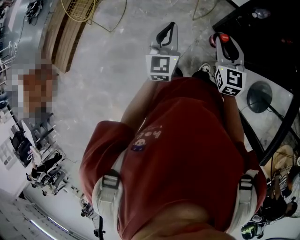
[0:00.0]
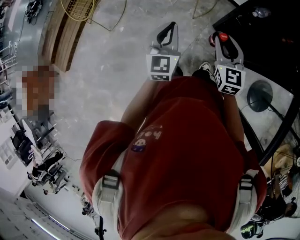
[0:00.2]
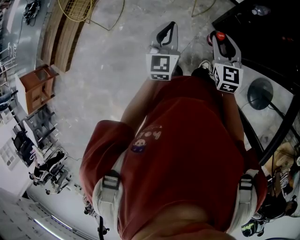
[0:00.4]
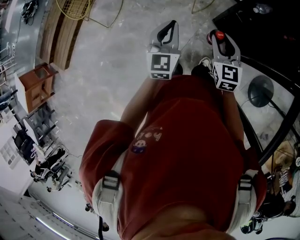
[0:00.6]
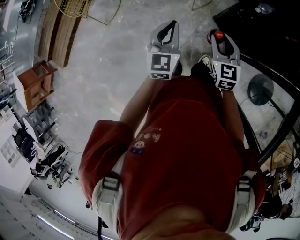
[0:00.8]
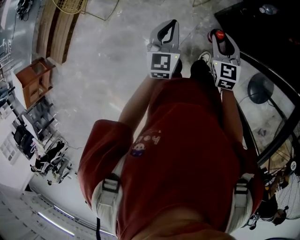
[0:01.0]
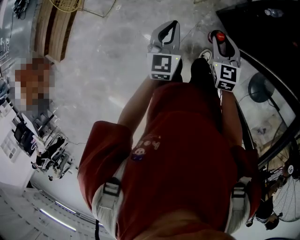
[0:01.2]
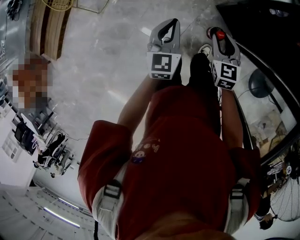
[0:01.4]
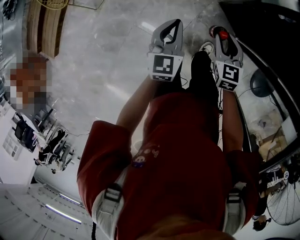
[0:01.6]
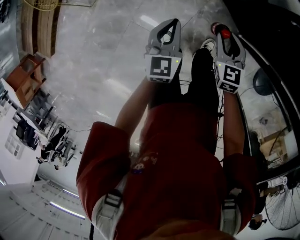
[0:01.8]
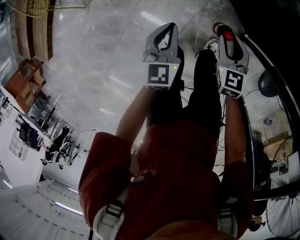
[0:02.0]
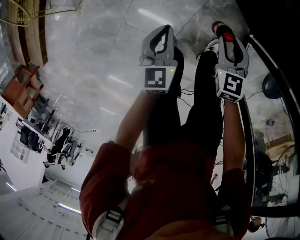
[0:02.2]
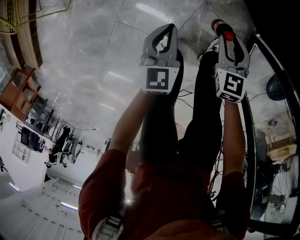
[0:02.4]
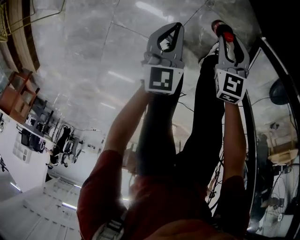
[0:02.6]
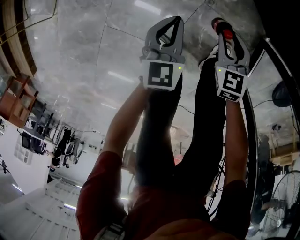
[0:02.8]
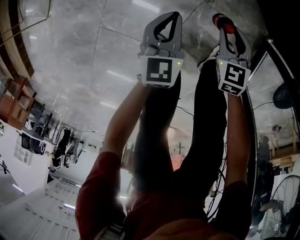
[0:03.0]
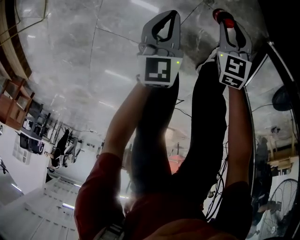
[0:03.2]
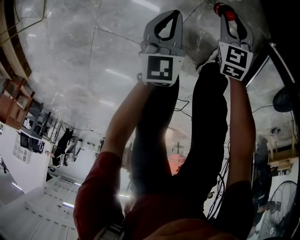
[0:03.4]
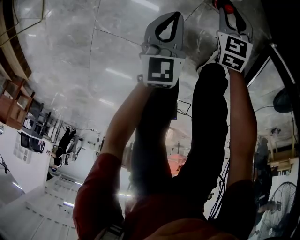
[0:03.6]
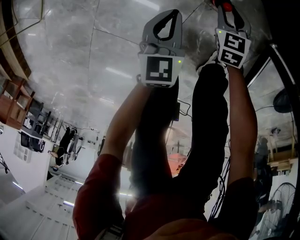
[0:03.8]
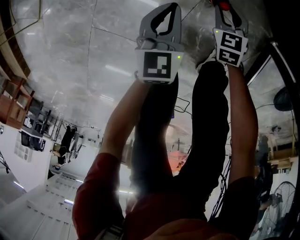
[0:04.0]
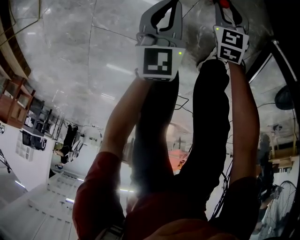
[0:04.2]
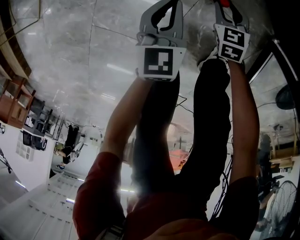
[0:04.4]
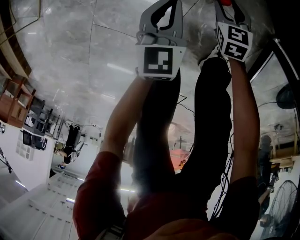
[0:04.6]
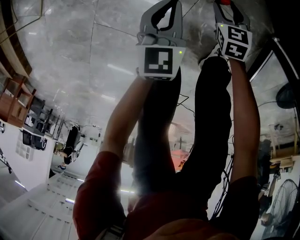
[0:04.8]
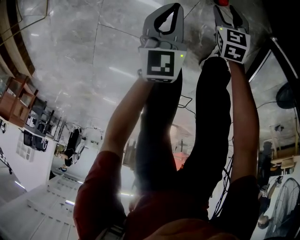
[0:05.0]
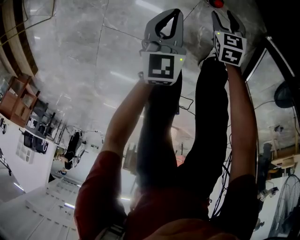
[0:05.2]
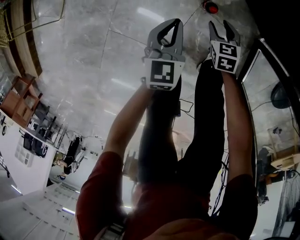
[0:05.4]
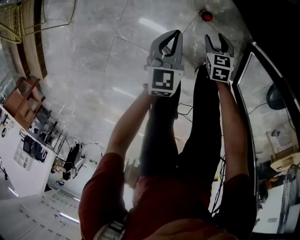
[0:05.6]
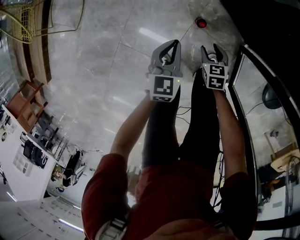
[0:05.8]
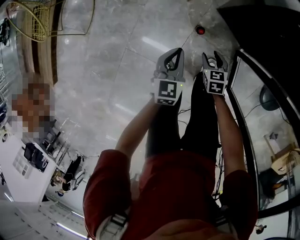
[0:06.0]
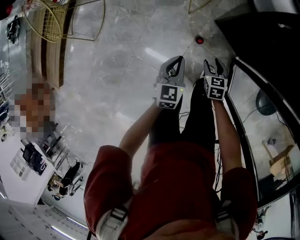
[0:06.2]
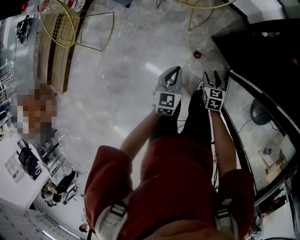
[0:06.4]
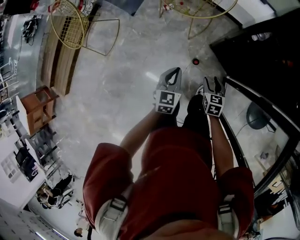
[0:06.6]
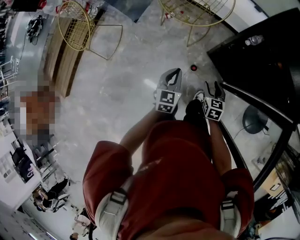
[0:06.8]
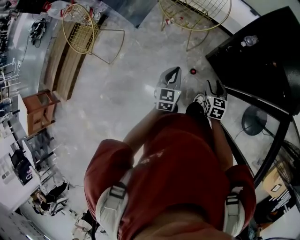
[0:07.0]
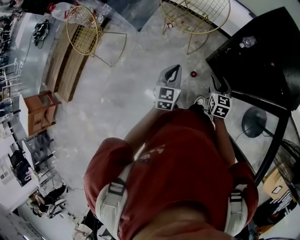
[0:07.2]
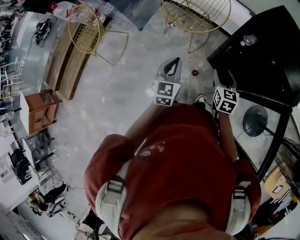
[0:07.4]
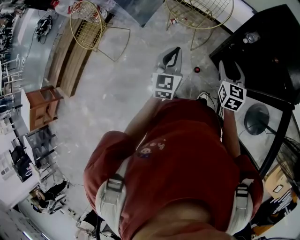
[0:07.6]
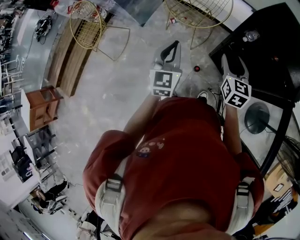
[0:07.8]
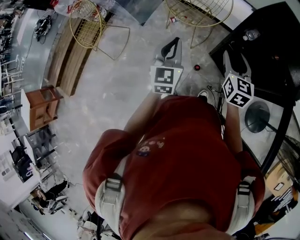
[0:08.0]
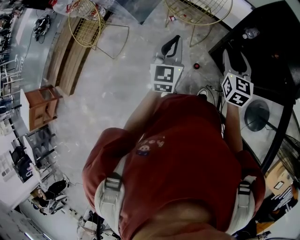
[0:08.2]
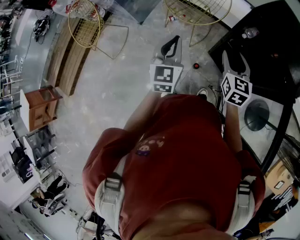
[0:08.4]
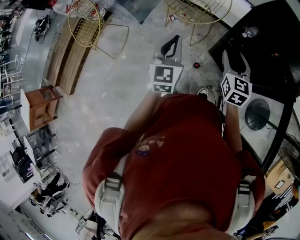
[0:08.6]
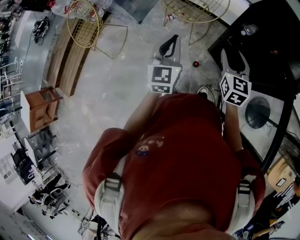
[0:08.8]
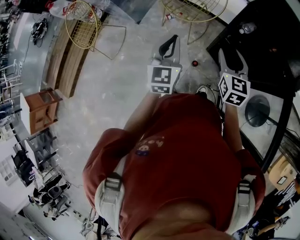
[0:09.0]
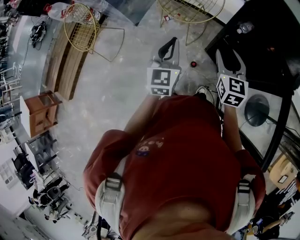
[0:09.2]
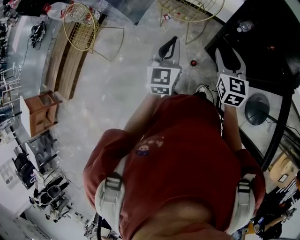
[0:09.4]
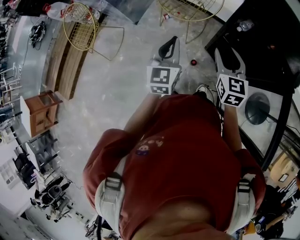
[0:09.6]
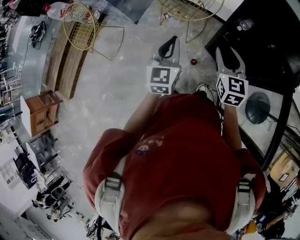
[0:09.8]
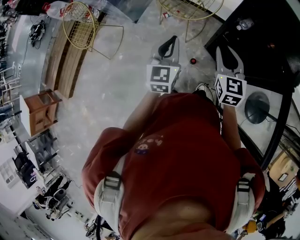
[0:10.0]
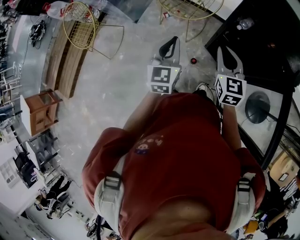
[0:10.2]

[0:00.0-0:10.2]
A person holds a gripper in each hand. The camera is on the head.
0:00.0 to 0:01.4: The two grippers go approximately 15 cm downward.
0:01.4 to 0:03.0: The two grippers go about 60 cm downward.
0:03.0 to 0:04.4: The right gripper is displaced downward by about 10 cm; the left gripper heads downward, covering roughly 5 cm.
0:04.4 to 0:05.8: Both grippers move upward, some 30 cm.
0:05.8 to 0:07.2: Both grippers move upward, about 40 cm. The right gripper turns by some 30 degrees.
0:07.2 to 0:08.8: The grippers both shift upward by approximately 15 cm.
0:08.8 to 0:10.2: The right gripper closes its fingers.

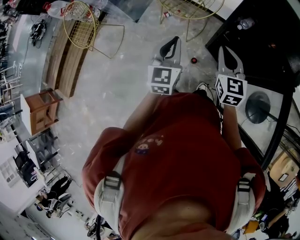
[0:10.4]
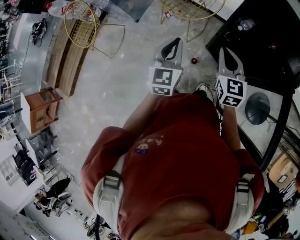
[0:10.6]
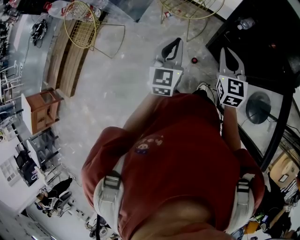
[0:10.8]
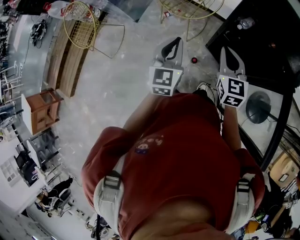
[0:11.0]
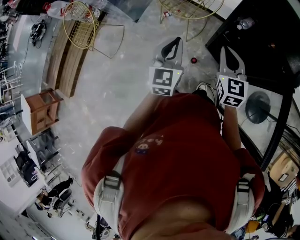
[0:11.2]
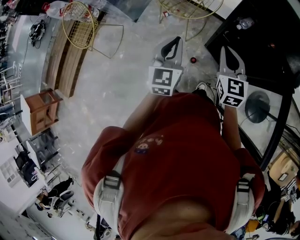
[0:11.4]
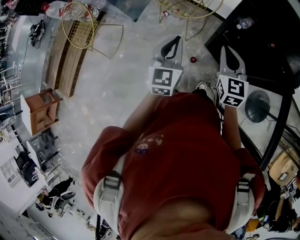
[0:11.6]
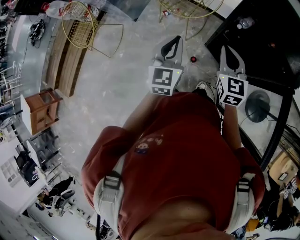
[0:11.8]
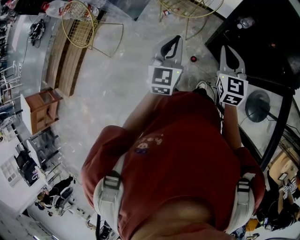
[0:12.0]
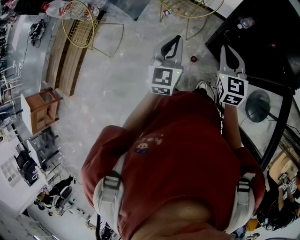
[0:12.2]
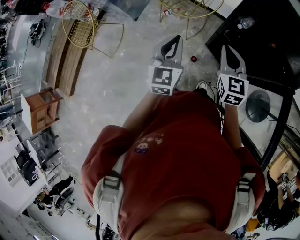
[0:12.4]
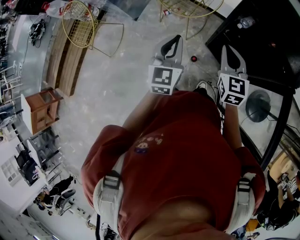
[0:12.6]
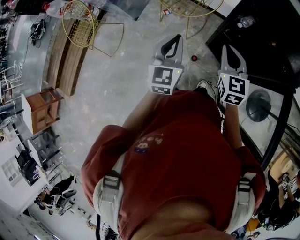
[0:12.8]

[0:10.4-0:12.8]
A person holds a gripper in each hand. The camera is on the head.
0:10.4 to 0:11.6: The grippers move only a little.
0:11.6 to 0:12.8: Both grippers stay about where they are.

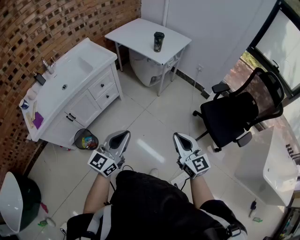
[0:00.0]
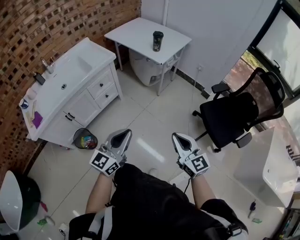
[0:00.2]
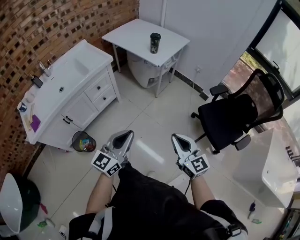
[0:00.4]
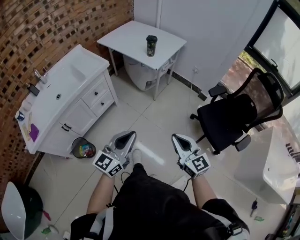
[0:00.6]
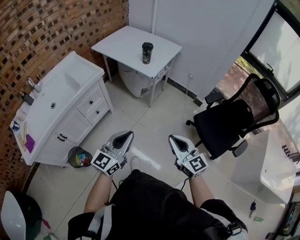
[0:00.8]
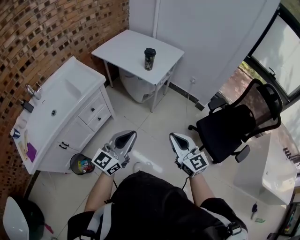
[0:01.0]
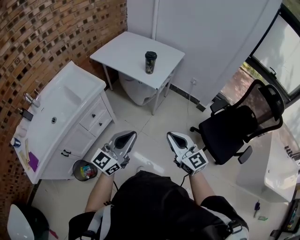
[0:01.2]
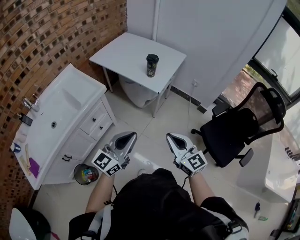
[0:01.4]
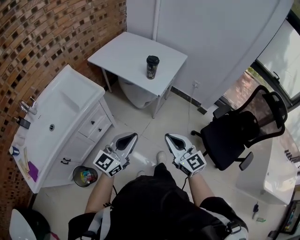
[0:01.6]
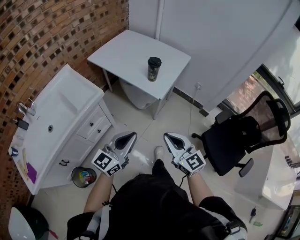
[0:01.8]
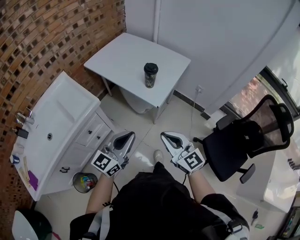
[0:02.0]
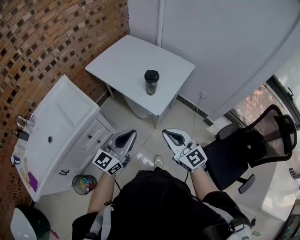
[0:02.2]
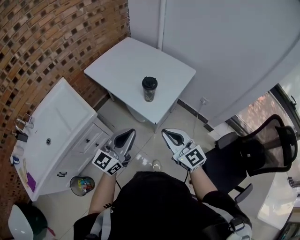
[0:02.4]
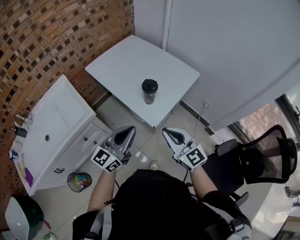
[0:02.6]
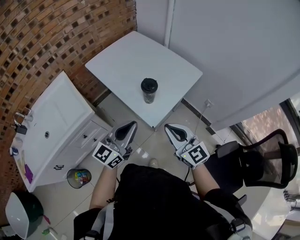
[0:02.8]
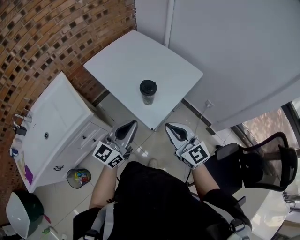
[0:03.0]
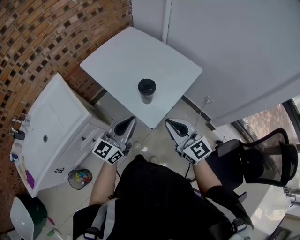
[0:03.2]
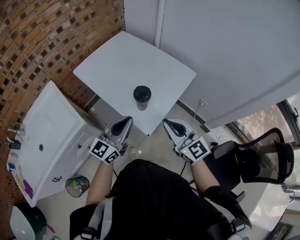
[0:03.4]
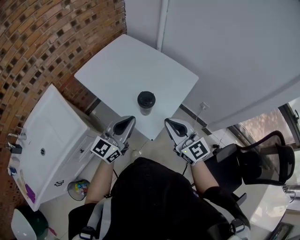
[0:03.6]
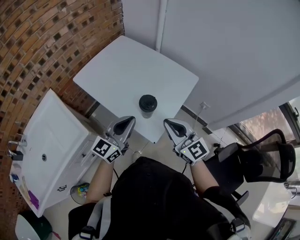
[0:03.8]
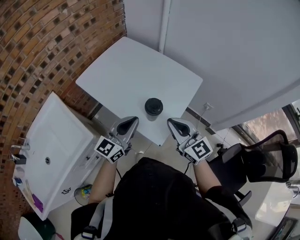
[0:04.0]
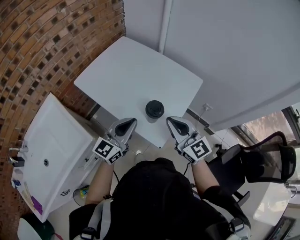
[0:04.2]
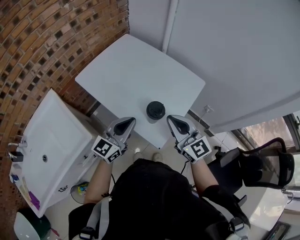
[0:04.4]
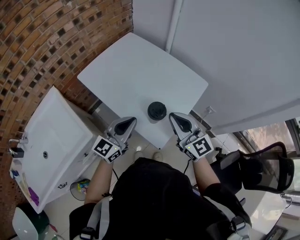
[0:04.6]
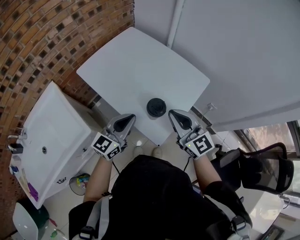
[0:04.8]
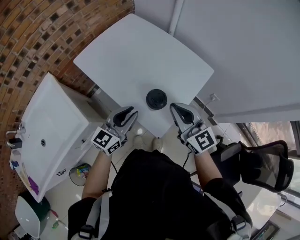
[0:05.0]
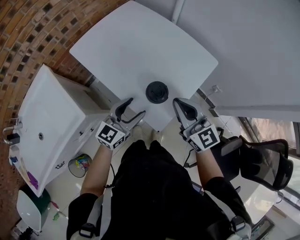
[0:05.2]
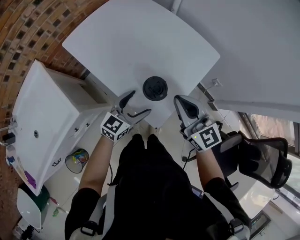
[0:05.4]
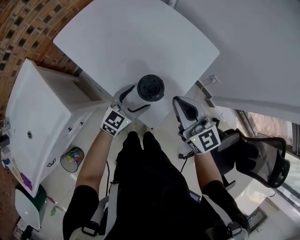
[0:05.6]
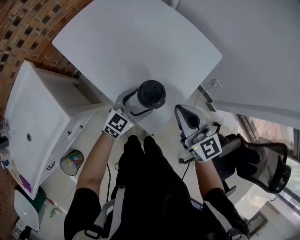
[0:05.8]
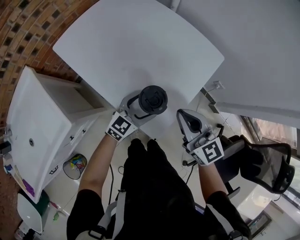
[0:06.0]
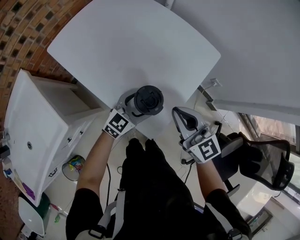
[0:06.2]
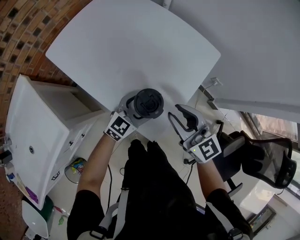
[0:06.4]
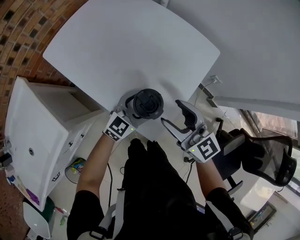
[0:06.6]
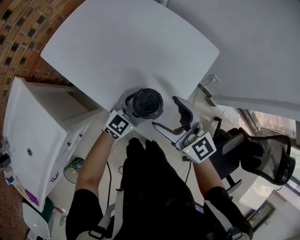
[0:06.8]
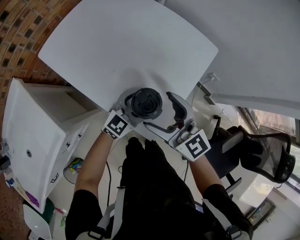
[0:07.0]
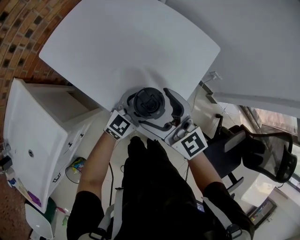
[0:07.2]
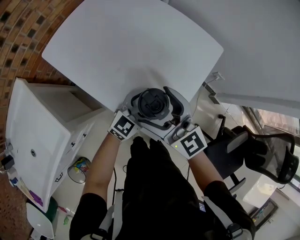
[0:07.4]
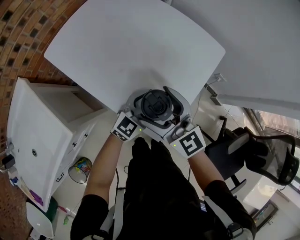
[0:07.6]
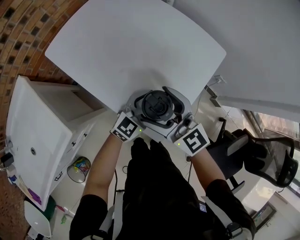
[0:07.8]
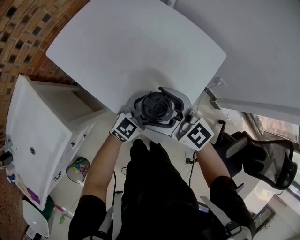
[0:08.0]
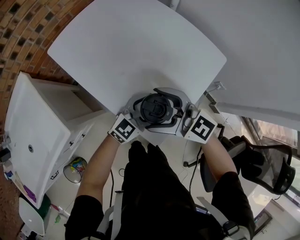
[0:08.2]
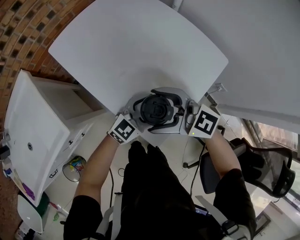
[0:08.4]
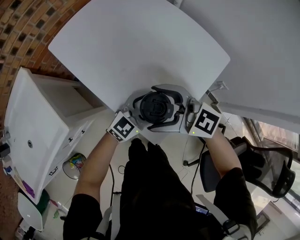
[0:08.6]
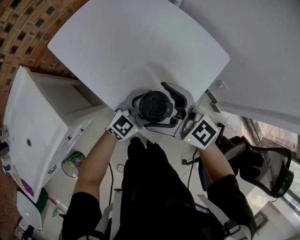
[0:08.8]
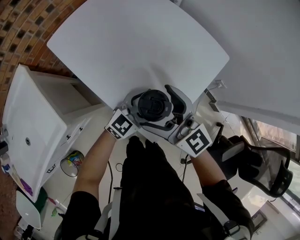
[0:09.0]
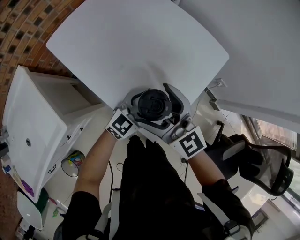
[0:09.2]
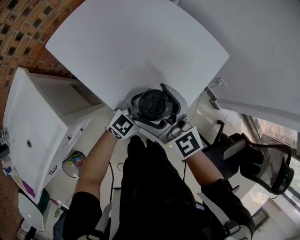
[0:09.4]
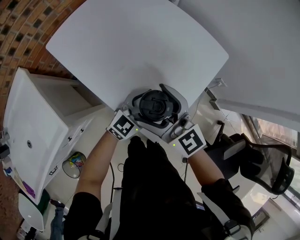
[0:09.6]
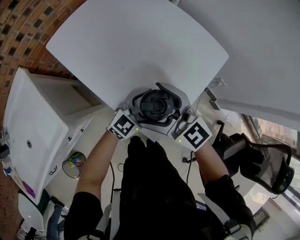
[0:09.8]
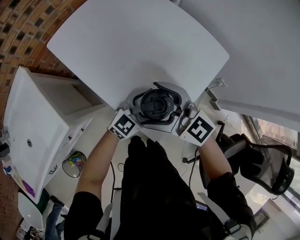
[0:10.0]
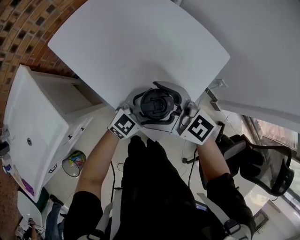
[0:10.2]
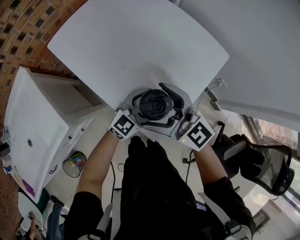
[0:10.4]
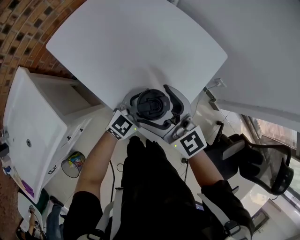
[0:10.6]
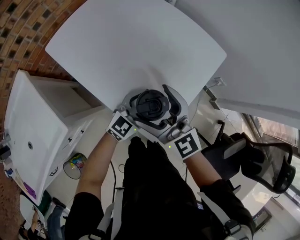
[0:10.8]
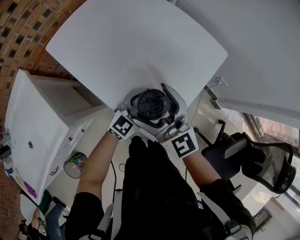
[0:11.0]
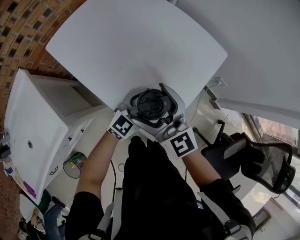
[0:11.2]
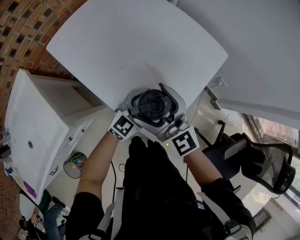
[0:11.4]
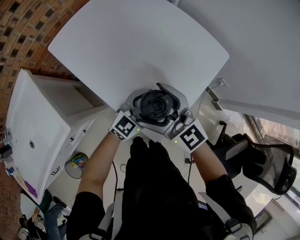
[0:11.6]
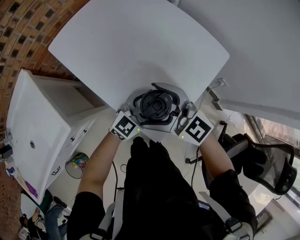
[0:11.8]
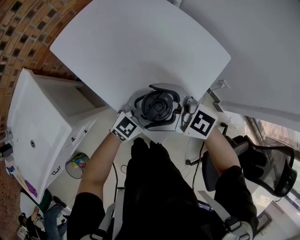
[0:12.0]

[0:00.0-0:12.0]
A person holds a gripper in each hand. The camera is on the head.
0:00.0 to 0:01.6: The two grippers go roughly 30 cm forward.
0:01.6 to 0:03.0: Both grippers travel together forward, some 30 cm.
0:03.0 to 0:04.4: Both grippers travel together forward, approximately 15 cm.
0:04.4 to 0:06.0: The right gripper moves downward, some 10 cm; the left gripper heads downward and to the right, covering approximately 25 cm, rotates roughly 20 degrees, and opens its fingers.
0:06.0 to 0:07.6: The right gripper goes approximately 10 cm to the left, and opens.
0:10.4 to 0:12.0: The right gripper rotates about 20 degrees.
